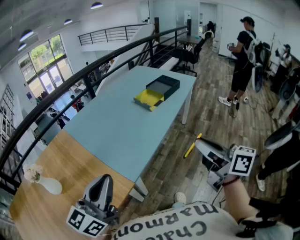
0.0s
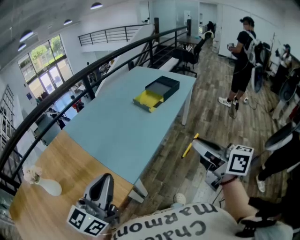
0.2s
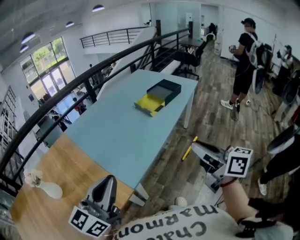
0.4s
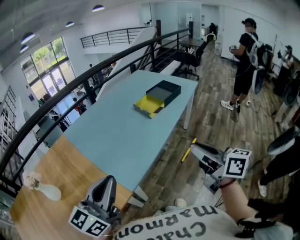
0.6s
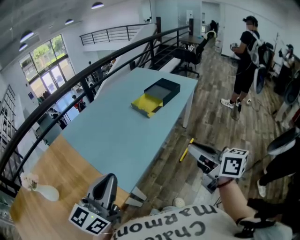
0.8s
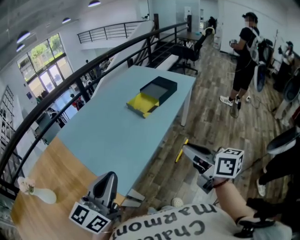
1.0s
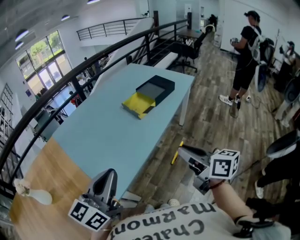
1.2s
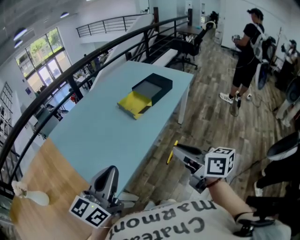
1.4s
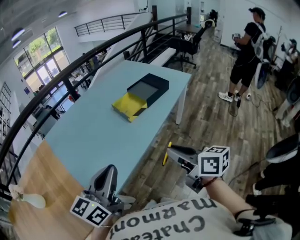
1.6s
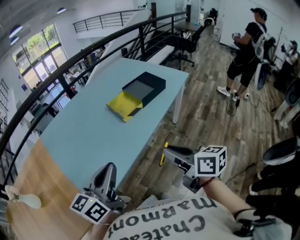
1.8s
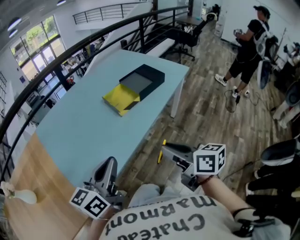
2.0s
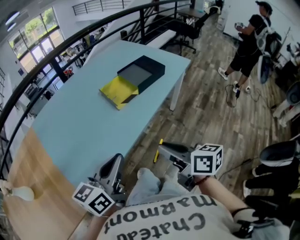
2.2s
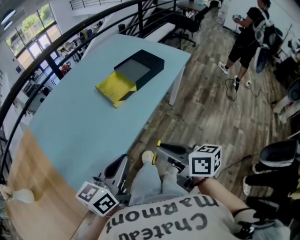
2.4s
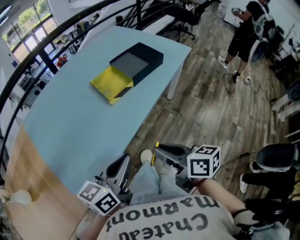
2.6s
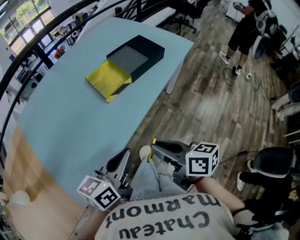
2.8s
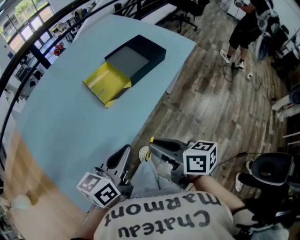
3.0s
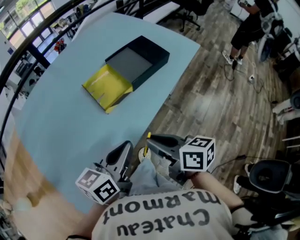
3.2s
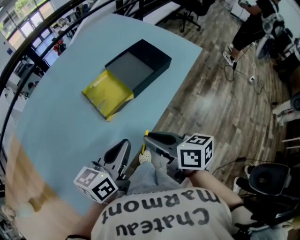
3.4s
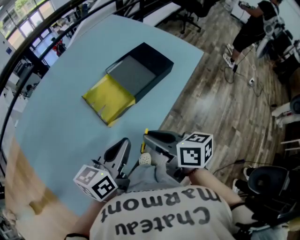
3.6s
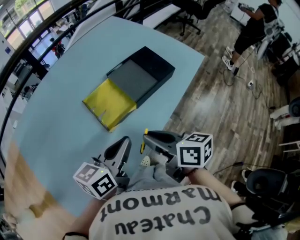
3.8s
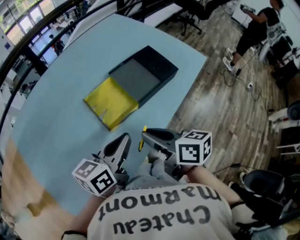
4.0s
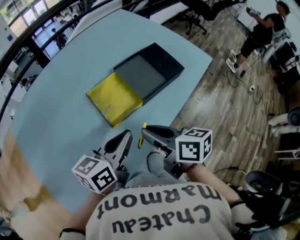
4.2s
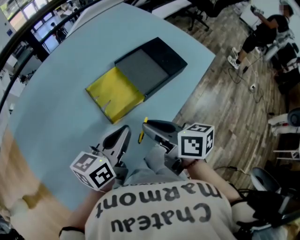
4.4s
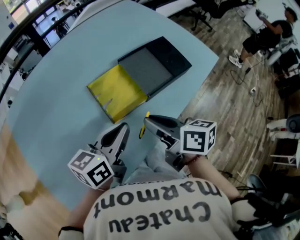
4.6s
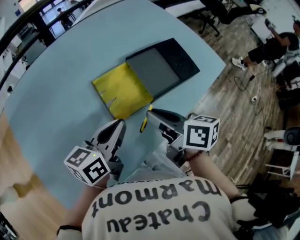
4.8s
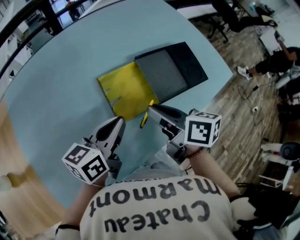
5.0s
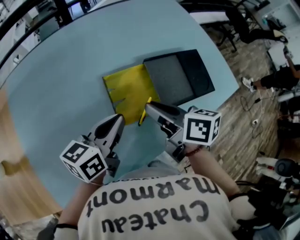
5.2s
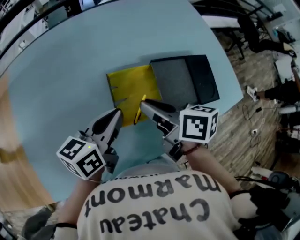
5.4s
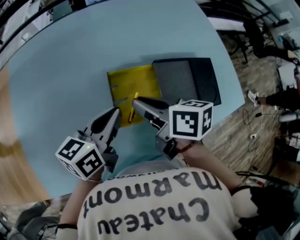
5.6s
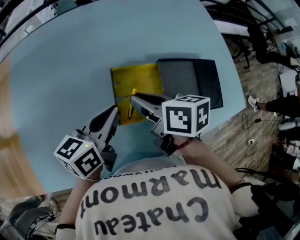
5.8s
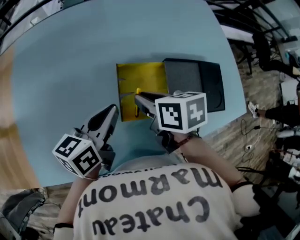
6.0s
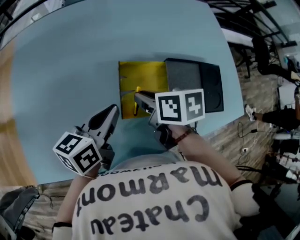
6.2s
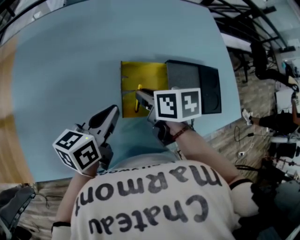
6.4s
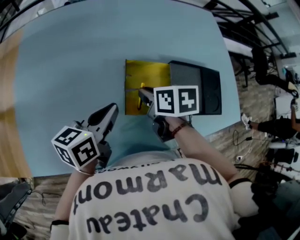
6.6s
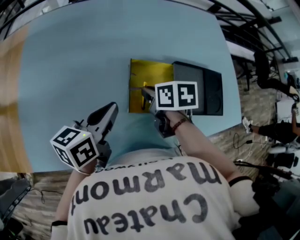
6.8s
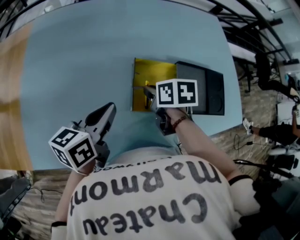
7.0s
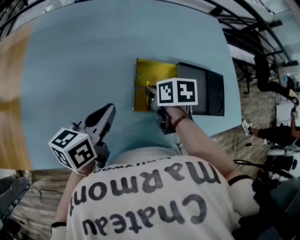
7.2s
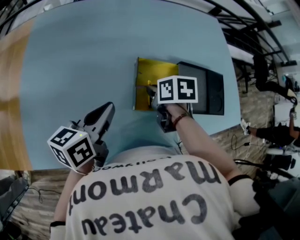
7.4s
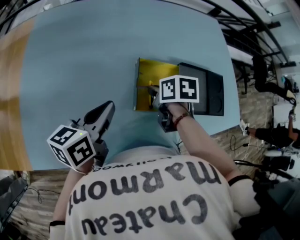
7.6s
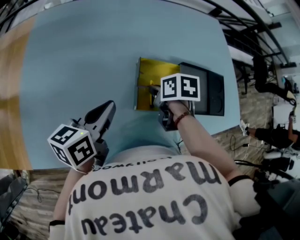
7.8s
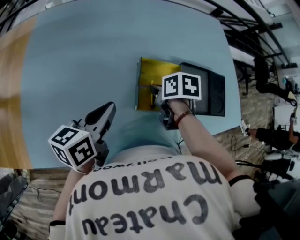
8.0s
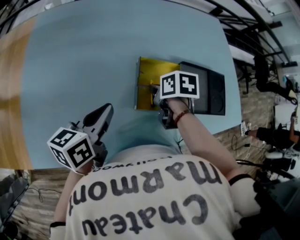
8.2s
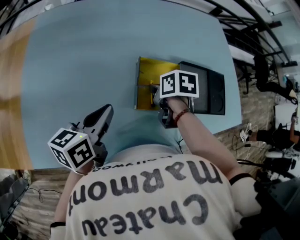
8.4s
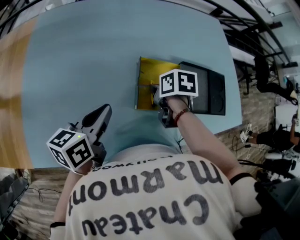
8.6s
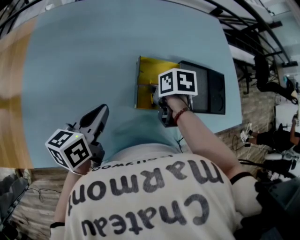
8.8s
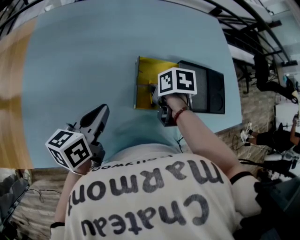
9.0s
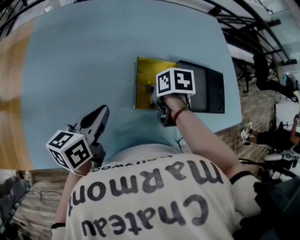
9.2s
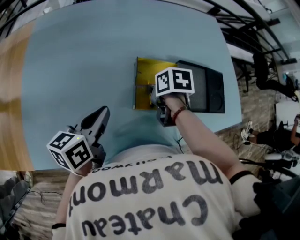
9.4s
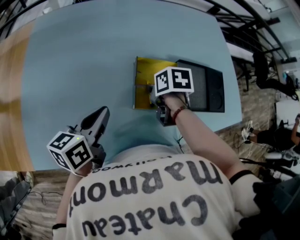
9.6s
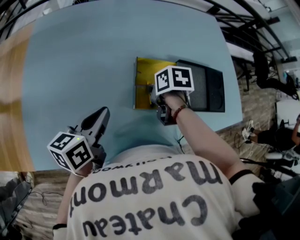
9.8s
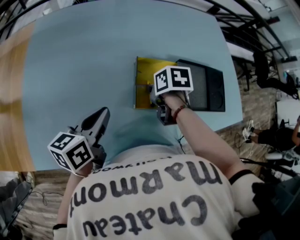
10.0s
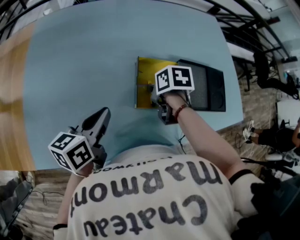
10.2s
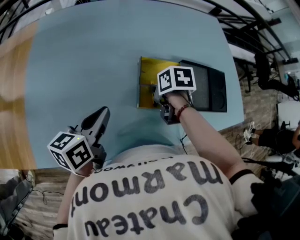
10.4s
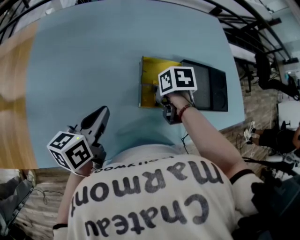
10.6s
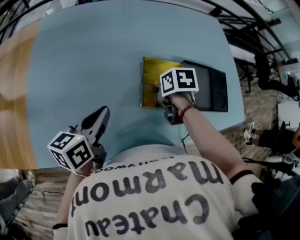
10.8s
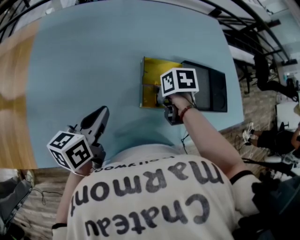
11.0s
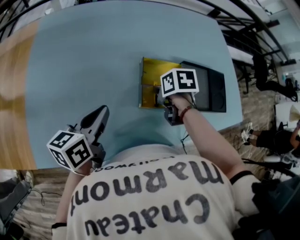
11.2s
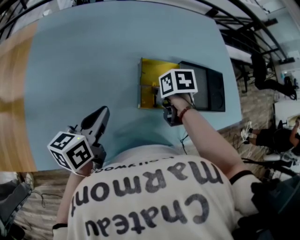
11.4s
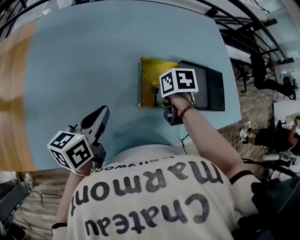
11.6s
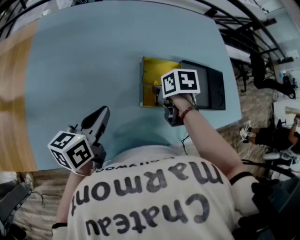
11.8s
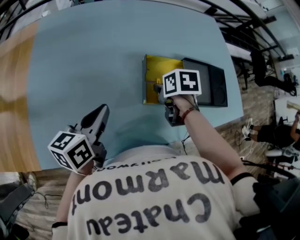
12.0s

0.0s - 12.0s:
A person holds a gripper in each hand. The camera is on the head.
0.0s - 1.6s: The right gripper shifts roughly 20 cm forward, downward and to the right, while the left gripper shifts some 25 cm forward and to the right.
1.6s - 3.0s: The right gripper shifts some 15 cm forward and downward; the left gripper is displaced to the right, forward and downward by about 25 cm, and rotates roughly 20 degrees.
3.0s - 4.4s: Both grippers travel together forward, about 20 cm.
4.4s - 6.0s: The left gripper ends up about 15 cm from where it was, and swivels some 30 degrees, while the right gripper moves roughly 15 cm, and swivels approximately 40 degrees.
6.0s - 7.6s: The right gripper travels downward by about 5 cm; the left gripper heads to the left, covering approximately 5 cm.
7.6s - 9.0s: The grippers stay close to where they were, moving slightly.
9.0s - 10.4s: Both grippers stay about where they are.
10.4s - 12.0s: The grippers make only small movements.

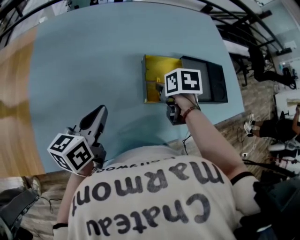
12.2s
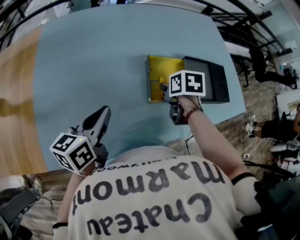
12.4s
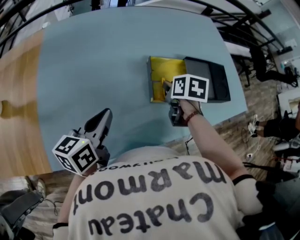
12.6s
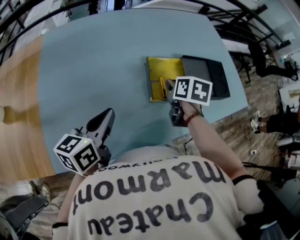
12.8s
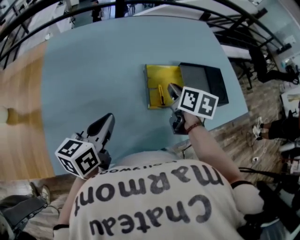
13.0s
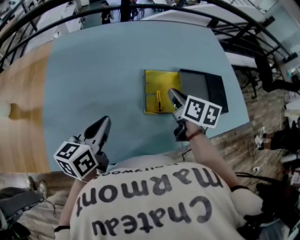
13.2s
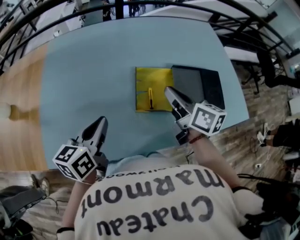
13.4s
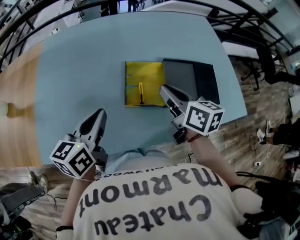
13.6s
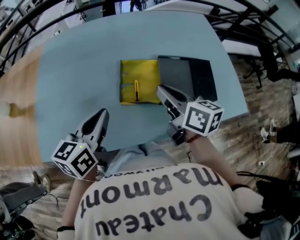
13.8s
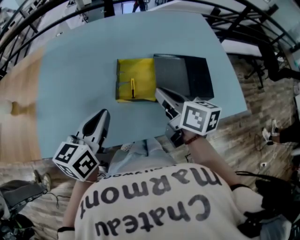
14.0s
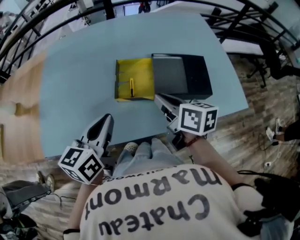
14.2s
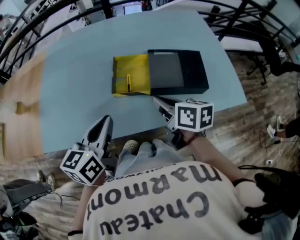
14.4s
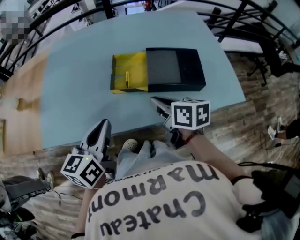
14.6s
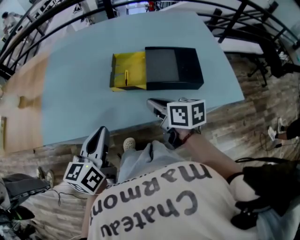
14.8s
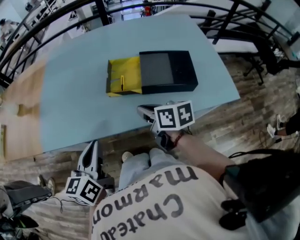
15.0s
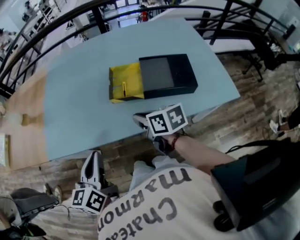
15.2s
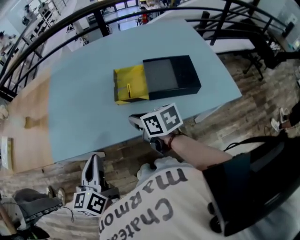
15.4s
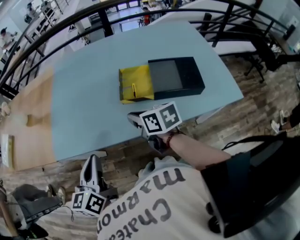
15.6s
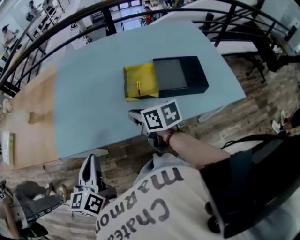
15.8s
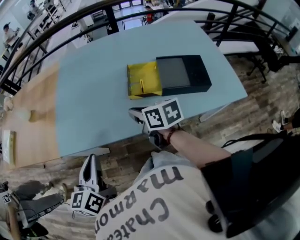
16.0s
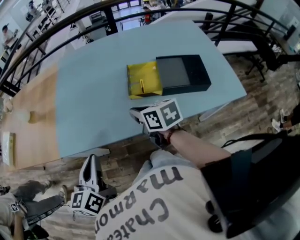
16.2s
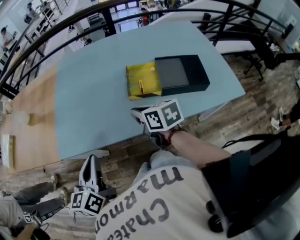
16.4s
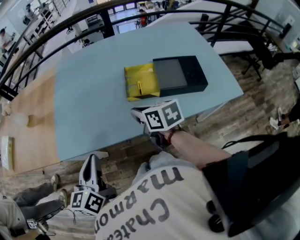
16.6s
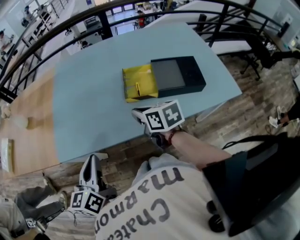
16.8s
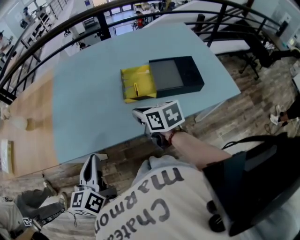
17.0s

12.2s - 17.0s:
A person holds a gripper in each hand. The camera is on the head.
12.2s - 13.8s: The left gripper heads to the right and upward, covering some 15 cm, while the right gripper goes about 15 cm upward and to the right, and angles its fingers upward, by about 50 degrees.
13.8s - 15.4s: Both grippers travel together backward and to the left, about 15 cm. The right gripper changes its angle by roughly 20 degrees; the left gripper rotates some 20 degrees.
15.4s - 17.0s: The left gripper moves to the left, some 5 cm.

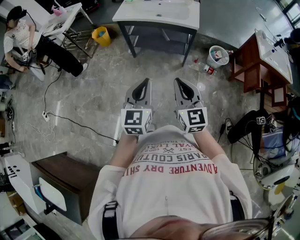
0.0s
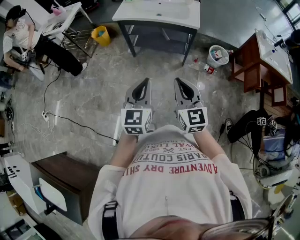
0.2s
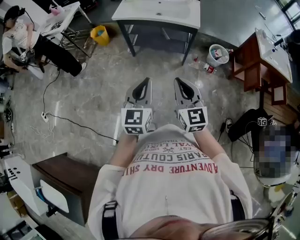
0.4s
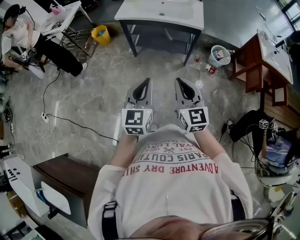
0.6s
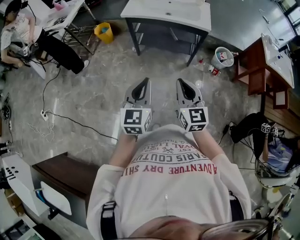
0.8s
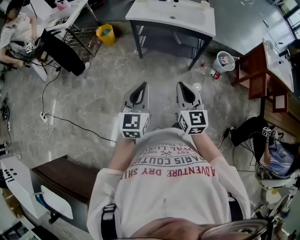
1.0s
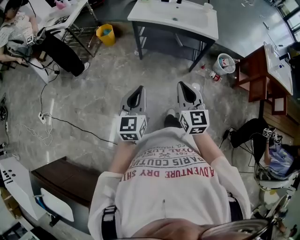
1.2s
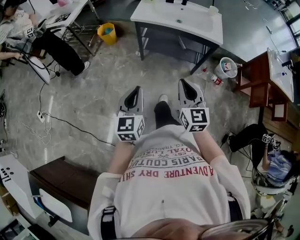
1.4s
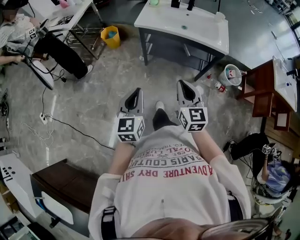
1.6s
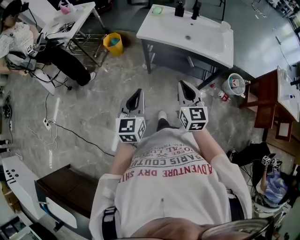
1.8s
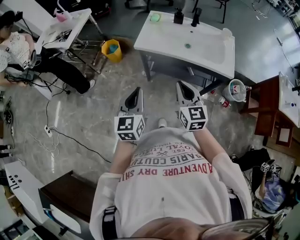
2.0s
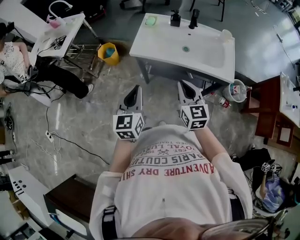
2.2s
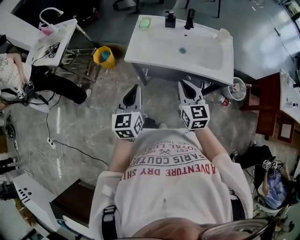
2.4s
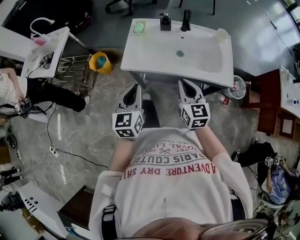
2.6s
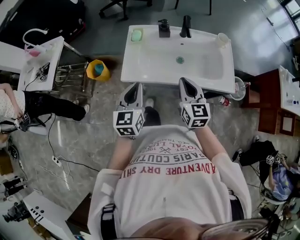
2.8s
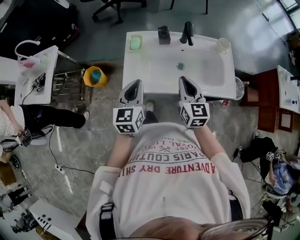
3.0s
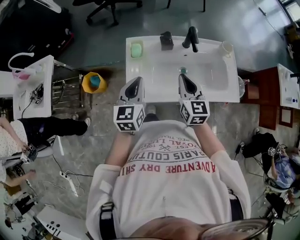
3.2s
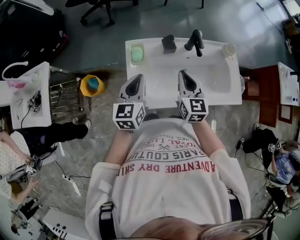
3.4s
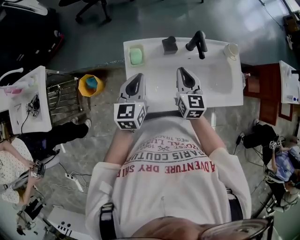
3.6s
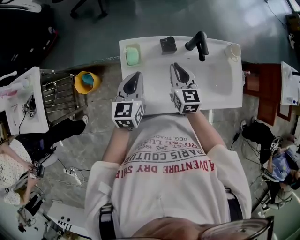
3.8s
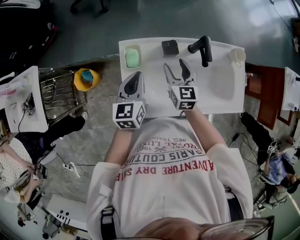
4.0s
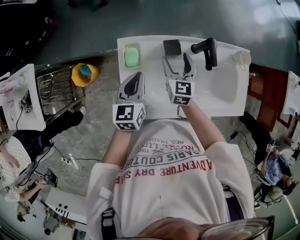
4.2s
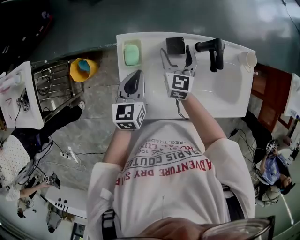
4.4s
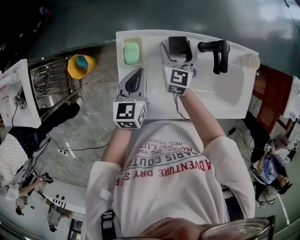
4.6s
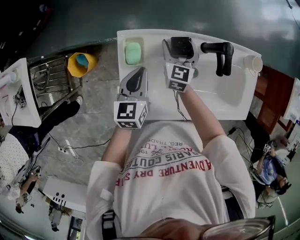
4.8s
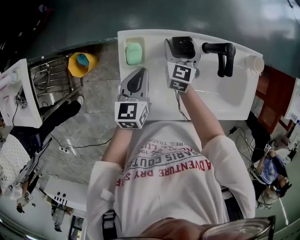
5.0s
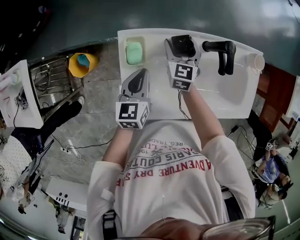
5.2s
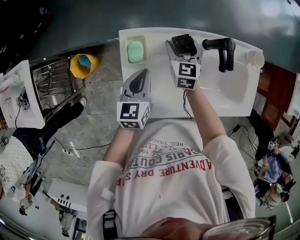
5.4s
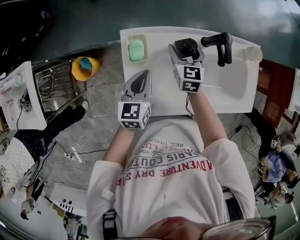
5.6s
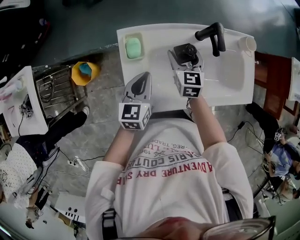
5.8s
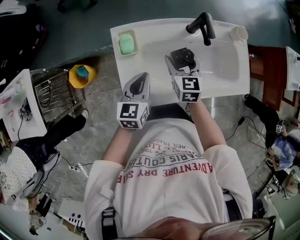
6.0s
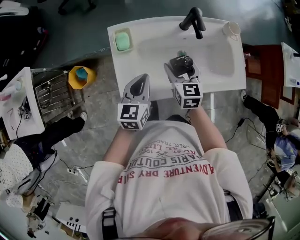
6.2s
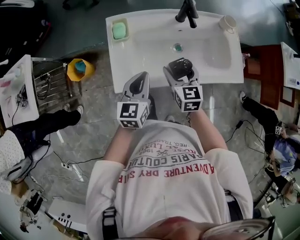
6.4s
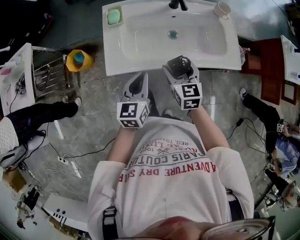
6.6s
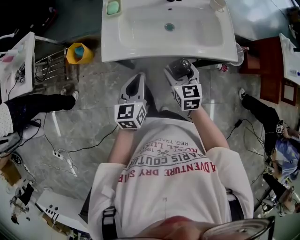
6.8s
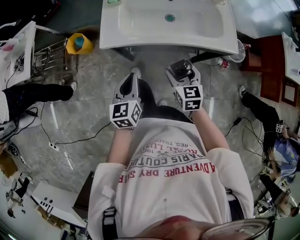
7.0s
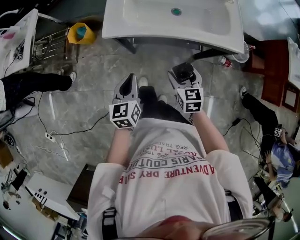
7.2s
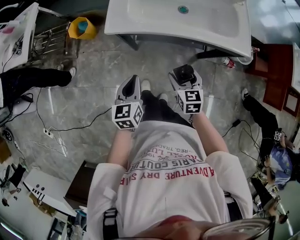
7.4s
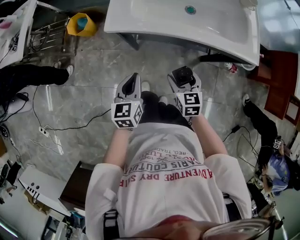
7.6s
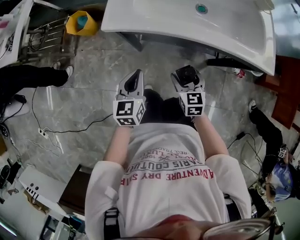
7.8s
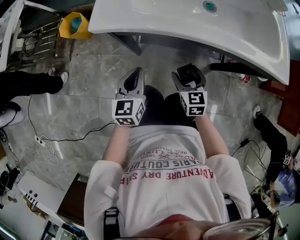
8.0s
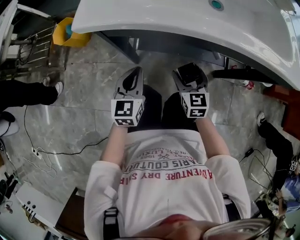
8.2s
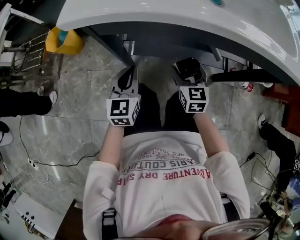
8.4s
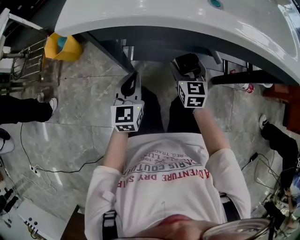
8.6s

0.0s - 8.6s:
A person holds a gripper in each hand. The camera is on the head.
0.0s - 1.4s: The grippers both shift to the left and forward by about 20 cm.
1.4s - 2.8s: The pair of grippers is taken forward, about 50 cm.
2.8s - 4.4s: Both grippers travel together forward and downward, approximately 35 cm. The right gripper opens its fingers.
4.4s - 5.8s: The right gripper changes place by about 5 cm.
5.8s - 7.2s: The two grippers go approximately 40 cm backward.
7.2s - 8.6s: The right gripper shifts some 40 cm downward and forward. Meanwhile the left gripper moves downward, roughly 35 cm.
